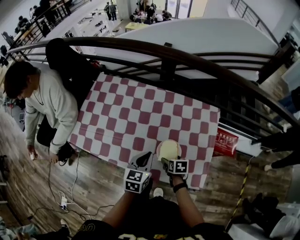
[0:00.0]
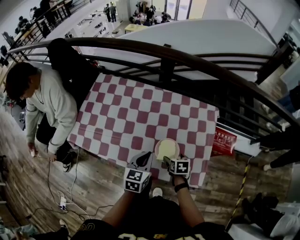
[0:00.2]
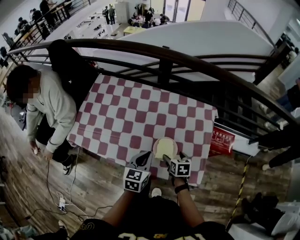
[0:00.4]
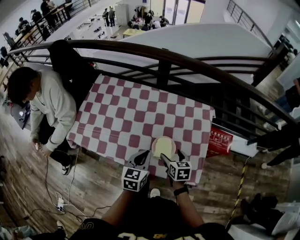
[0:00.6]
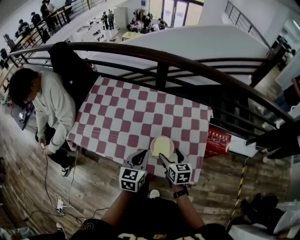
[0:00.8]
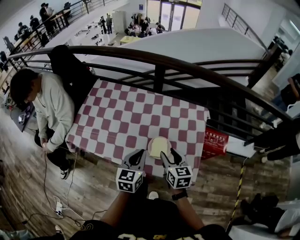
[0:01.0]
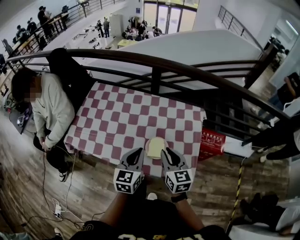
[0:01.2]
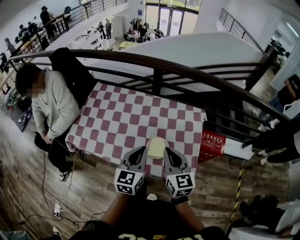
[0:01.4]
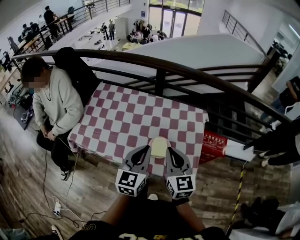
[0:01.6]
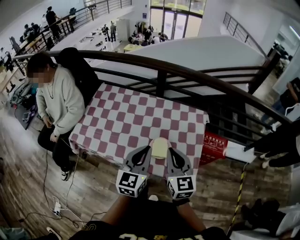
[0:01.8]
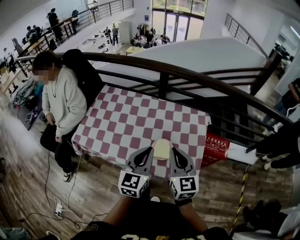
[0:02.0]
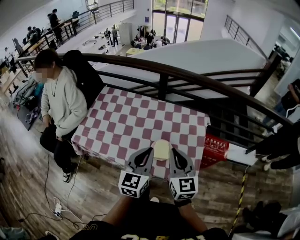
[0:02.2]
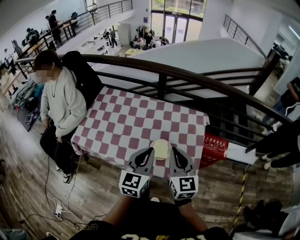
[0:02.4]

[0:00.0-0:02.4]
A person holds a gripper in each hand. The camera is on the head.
0:00.0 to 0:01.2: The left gripper shifts about 10 cm upward, while the right gripper goes roughly 25 cm upward, angles its fingers upward, by roughly 40 degrees, and closes up.
0:01.2 to 0:02.4: The two grippers go about 10 cm upward.

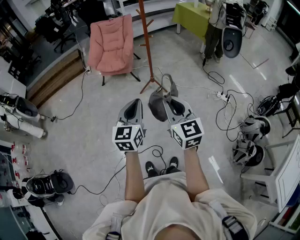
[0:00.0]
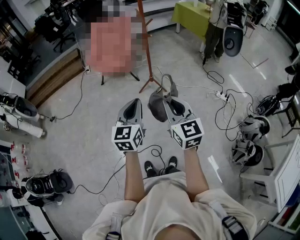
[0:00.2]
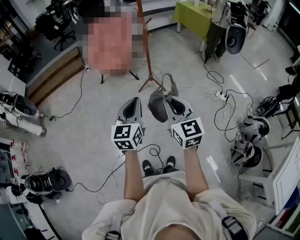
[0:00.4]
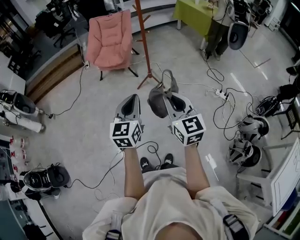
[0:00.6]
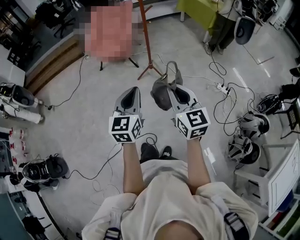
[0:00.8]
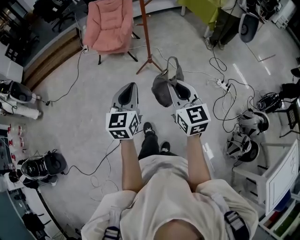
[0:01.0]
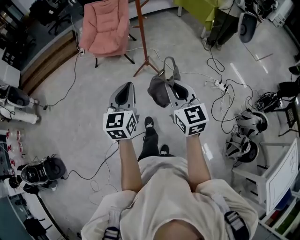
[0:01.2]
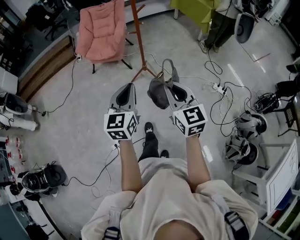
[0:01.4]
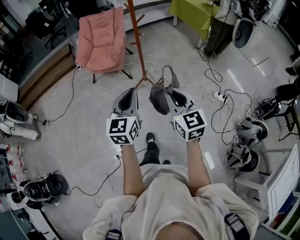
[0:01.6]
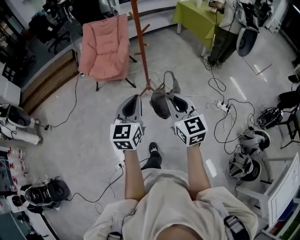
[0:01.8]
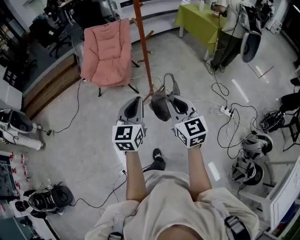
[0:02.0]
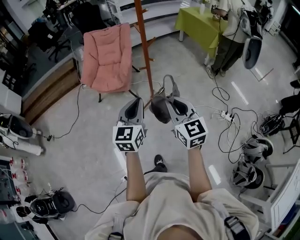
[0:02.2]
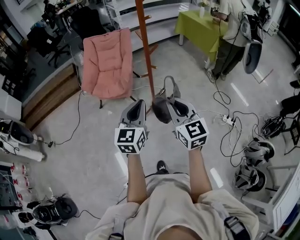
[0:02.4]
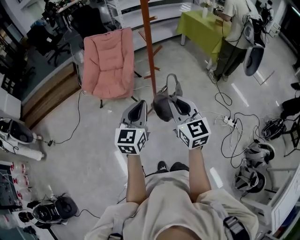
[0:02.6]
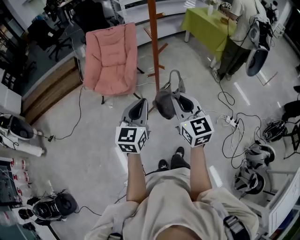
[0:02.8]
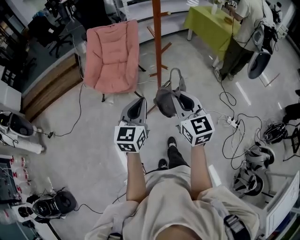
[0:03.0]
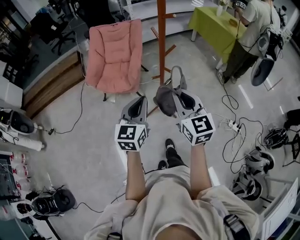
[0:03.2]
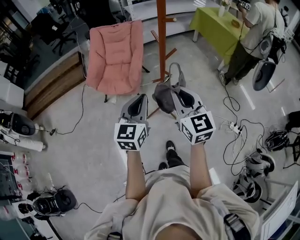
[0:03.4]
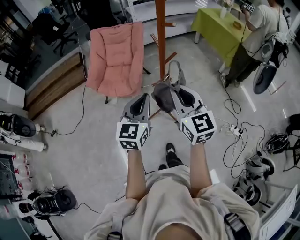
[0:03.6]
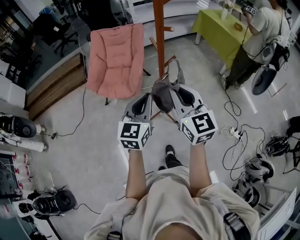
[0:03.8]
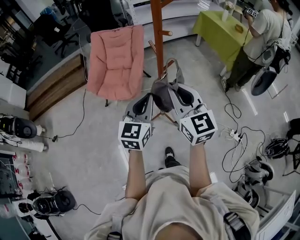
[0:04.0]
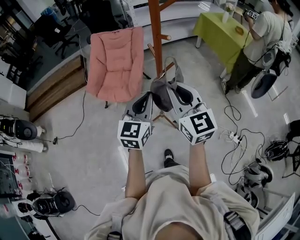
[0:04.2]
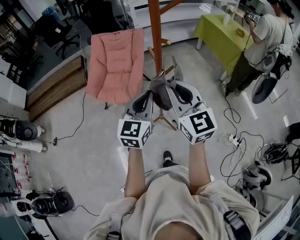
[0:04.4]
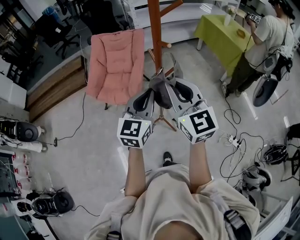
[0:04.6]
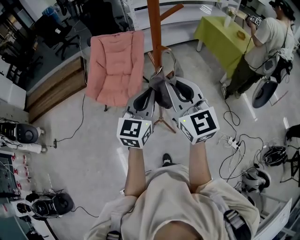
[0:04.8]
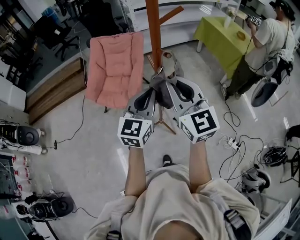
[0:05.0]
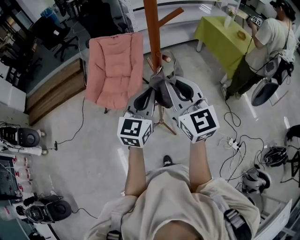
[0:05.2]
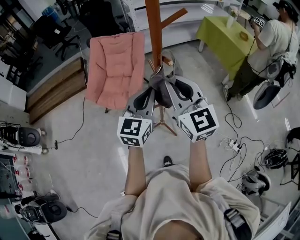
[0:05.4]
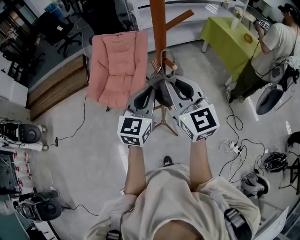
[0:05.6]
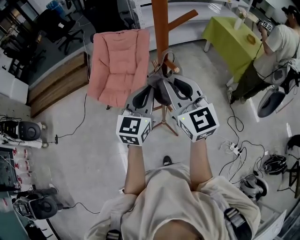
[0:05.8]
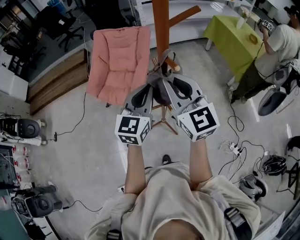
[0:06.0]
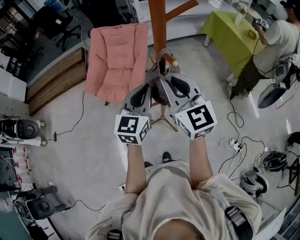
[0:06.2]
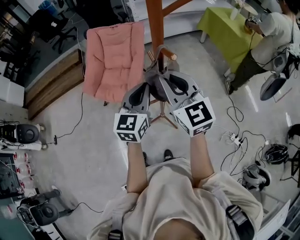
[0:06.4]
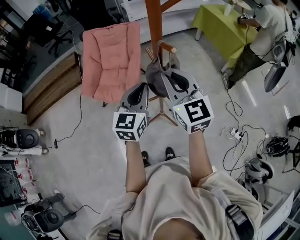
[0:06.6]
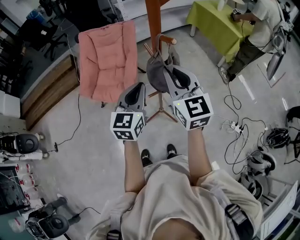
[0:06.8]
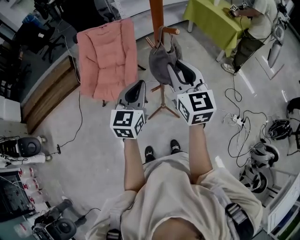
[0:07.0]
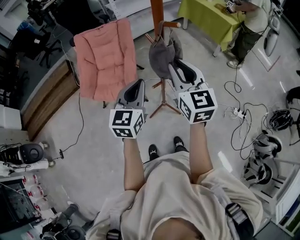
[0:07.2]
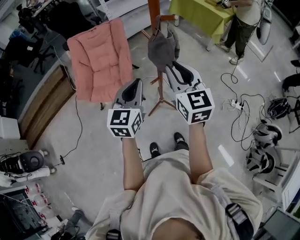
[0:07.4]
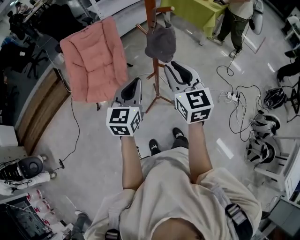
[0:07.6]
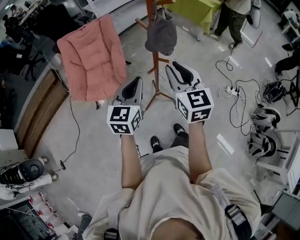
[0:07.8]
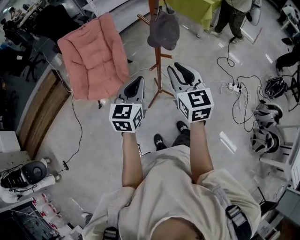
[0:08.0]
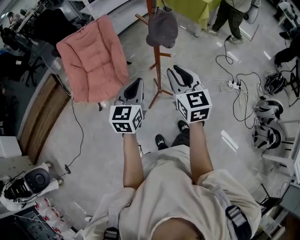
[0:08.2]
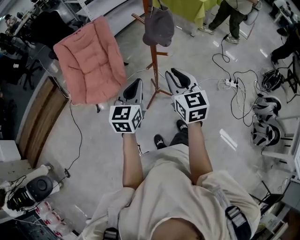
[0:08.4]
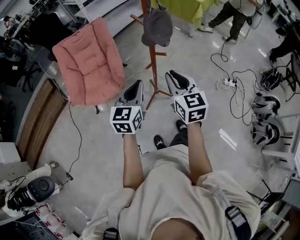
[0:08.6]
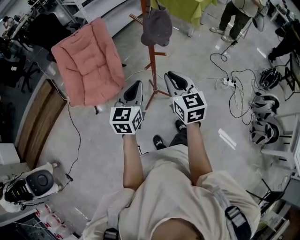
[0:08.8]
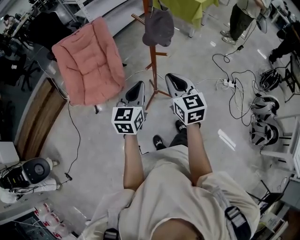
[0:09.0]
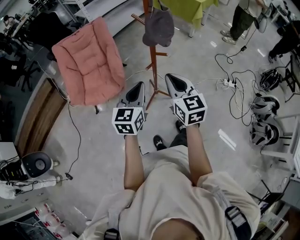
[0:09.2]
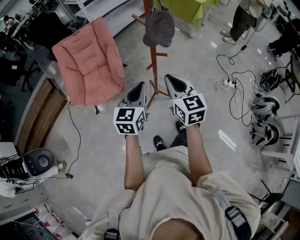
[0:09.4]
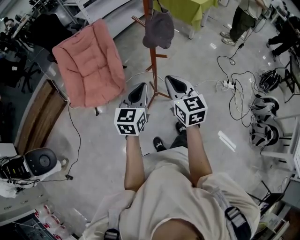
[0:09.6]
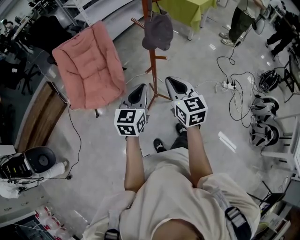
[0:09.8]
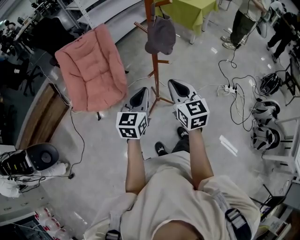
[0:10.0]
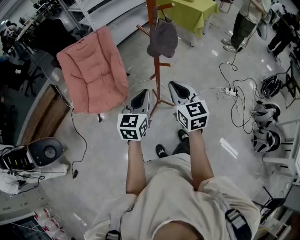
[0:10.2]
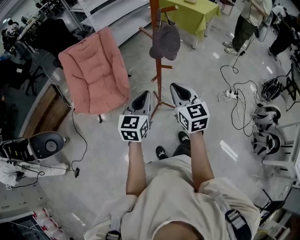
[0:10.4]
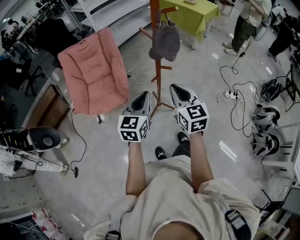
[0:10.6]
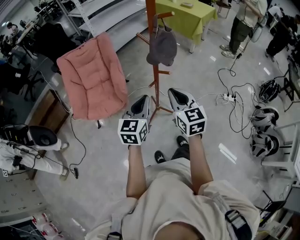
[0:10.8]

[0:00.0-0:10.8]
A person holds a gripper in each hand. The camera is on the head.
0:00.0 to 0:01.6: Both grippers move forward and to the right, roughly 15 cm.
0:01.6 to 0:03.0: The two grippers go about 20 cm forward.
0:03.0 to 0:04.6: The right gripper travels forward and upward by roughly 20 cm, while the left gripper moves forward, to the right and upward, about 15 cm.
0:04.6 to 0:06.2: Both grippers move forward, roughly 10 cm.
0:06.2 to 0:07.8: The left gripper moves about 15 cm, and turns by approximately 20 degrees, while the right gripper changes place by some 15 cm, and turns by roughly 40 degrees.
0:07.8 to 0:09.2: The left gripper moves about 5 cm, while the right gripper heads downward, covering some 5 cm.
0:09.2 to 0:10.8: The grippers move only a little.

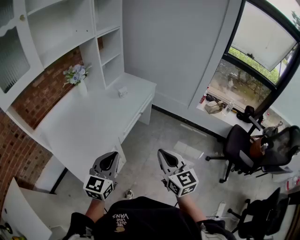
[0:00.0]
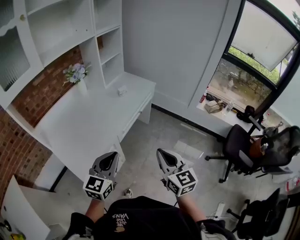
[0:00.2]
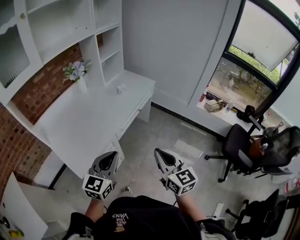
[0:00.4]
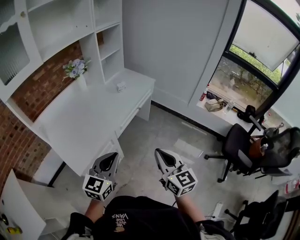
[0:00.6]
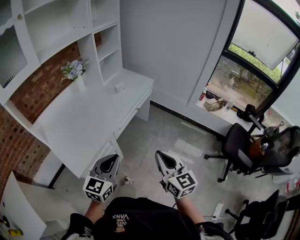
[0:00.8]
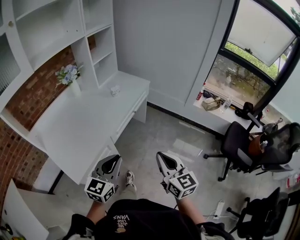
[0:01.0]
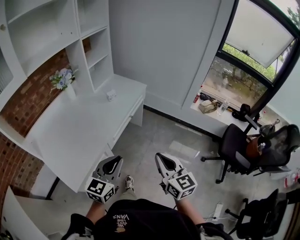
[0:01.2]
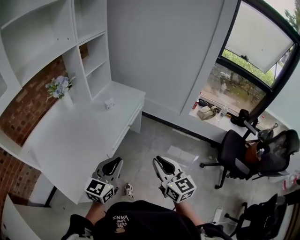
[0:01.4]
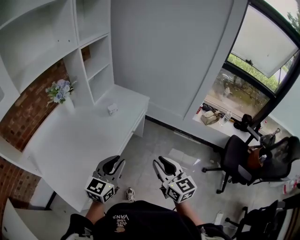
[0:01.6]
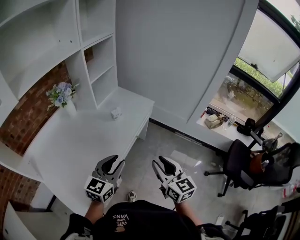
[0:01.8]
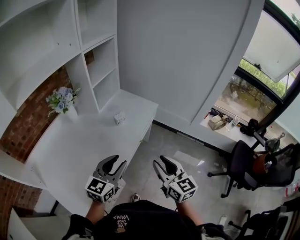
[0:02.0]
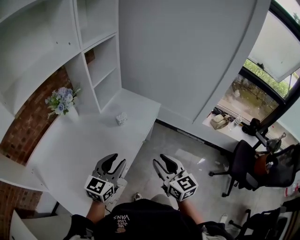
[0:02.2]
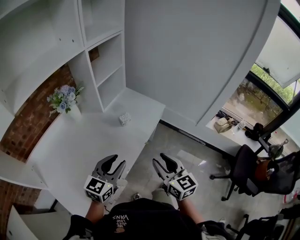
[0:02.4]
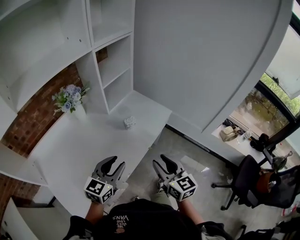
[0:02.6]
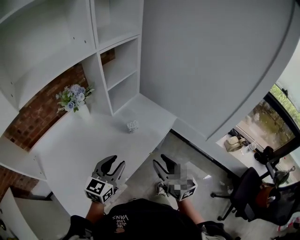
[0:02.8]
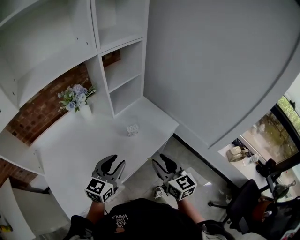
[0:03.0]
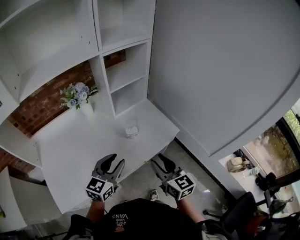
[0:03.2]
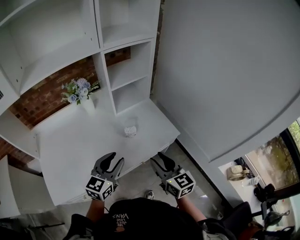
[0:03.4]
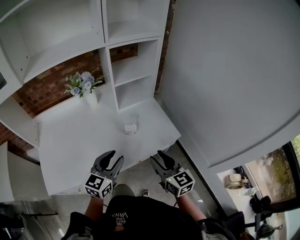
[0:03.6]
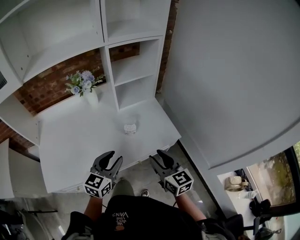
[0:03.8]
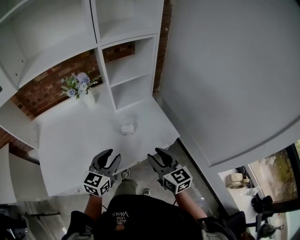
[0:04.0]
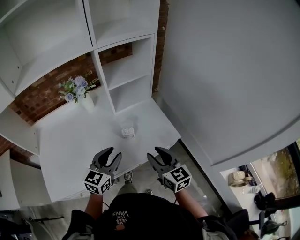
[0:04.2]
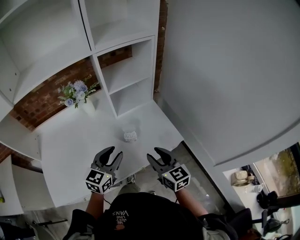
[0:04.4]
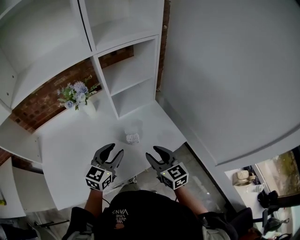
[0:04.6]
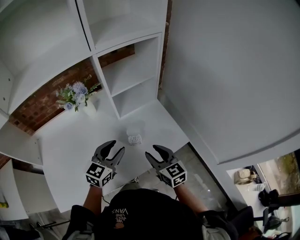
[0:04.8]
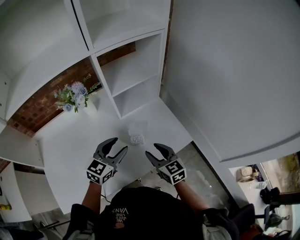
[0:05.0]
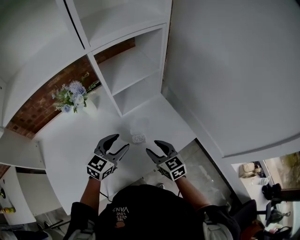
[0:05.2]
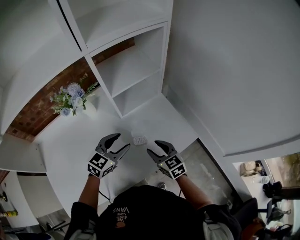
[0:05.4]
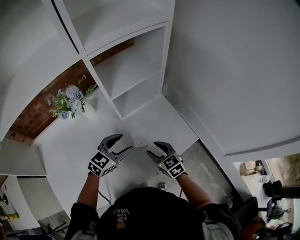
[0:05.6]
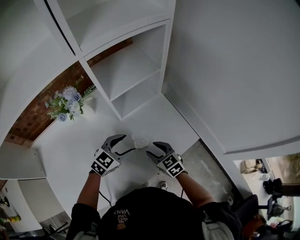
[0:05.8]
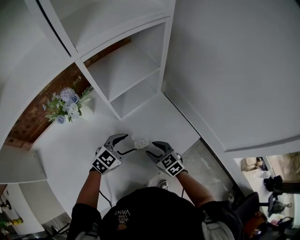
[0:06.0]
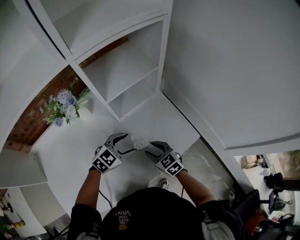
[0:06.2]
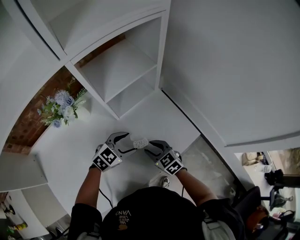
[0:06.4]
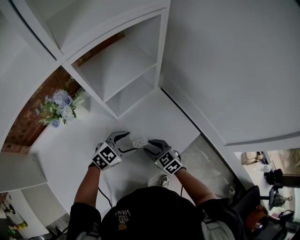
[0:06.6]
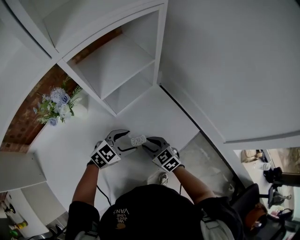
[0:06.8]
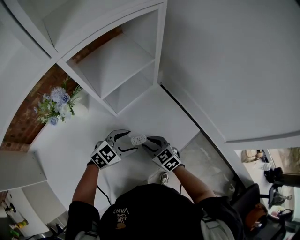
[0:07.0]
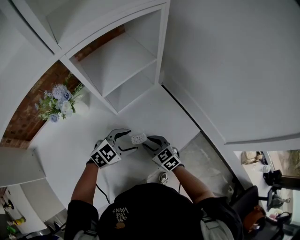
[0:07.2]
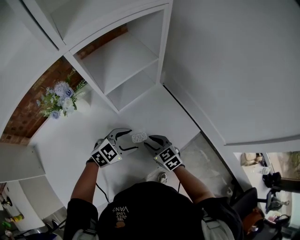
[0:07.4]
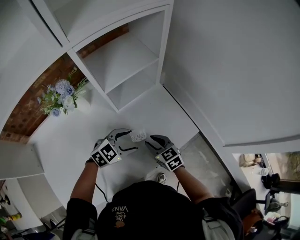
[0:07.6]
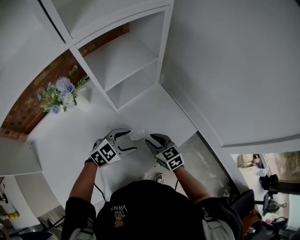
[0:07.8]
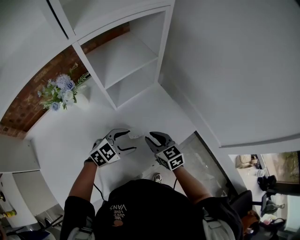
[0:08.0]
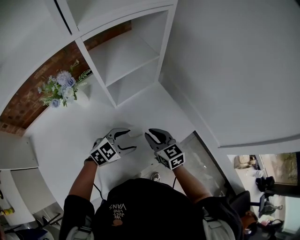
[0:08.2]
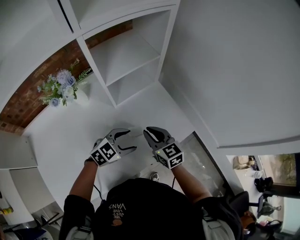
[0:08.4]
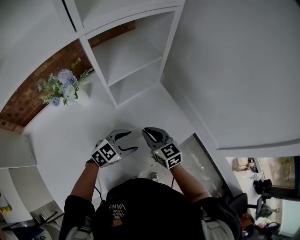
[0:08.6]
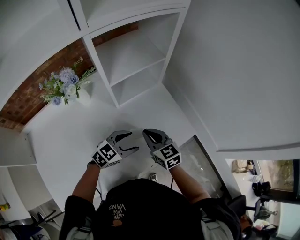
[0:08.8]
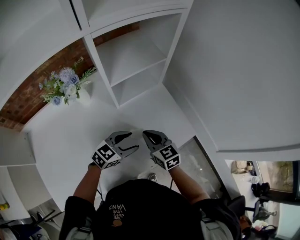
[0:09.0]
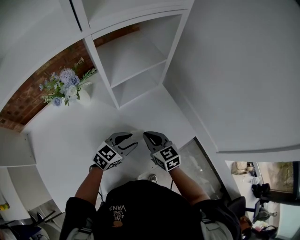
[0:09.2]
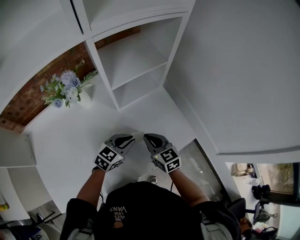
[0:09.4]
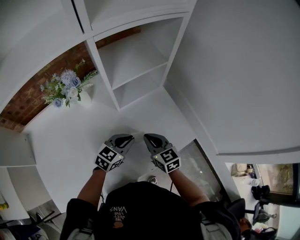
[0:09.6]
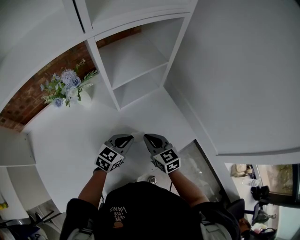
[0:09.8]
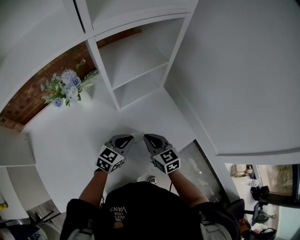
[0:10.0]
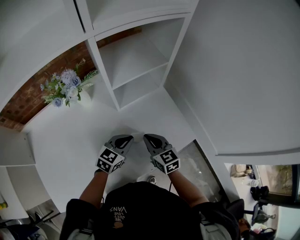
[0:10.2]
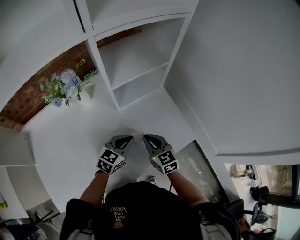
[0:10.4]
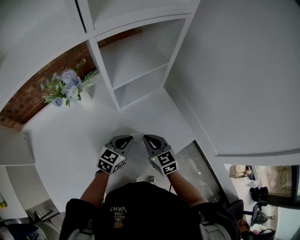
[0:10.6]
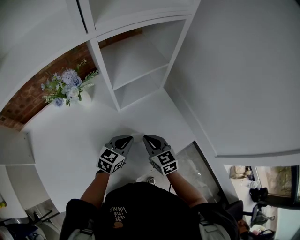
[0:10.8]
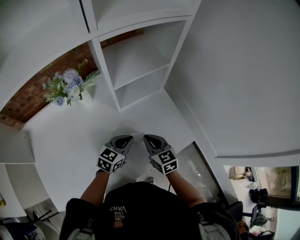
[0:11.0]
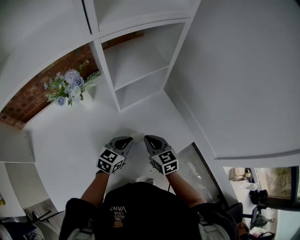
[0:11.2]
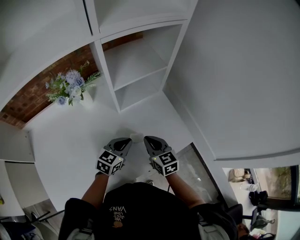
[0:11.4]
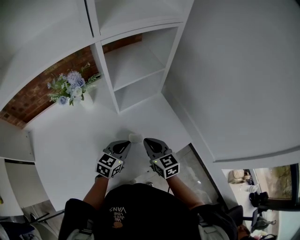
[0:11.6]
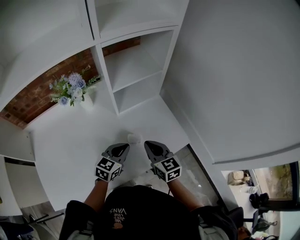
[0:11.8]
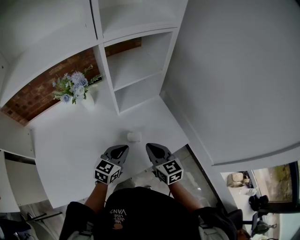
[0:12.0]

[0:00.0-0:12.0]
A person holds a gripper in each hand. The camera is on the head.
0:00.0 to 0:01.6: Both grippers move forward, roughly 15 cm.
0:01.6 to 0:03.0: The grippers both shift forward by some 25 cm. The right gripper rotates roughly 20 degrees. The left gripper turns by about 20 degrees.
0:03.0 to 0:04.4: The two grippers go some 10 cm forward and to the right.
0:04.4 to 0:06.0: The left gripper goes approximately 20 cm forward and downward, changes its angle by approximately 40 degrees, and opens its fingers, while the right gripper is displaced downward, forward and to the left by roughly 20 cm, and changes its angle by about 20 degrees.
0:06.0 to 0:07.6: The grippers stay close to where they were, moving slightly.
0:07.6 to 0:09.0: The left gripper turns by about 20 degrees. Meanwhile the right gripper travels upward by about 5 cm, and closes up.
0:09.0 to 0:10.4: The left gripper closes its fingers.
0:10.4 to 0:12.0: The left gripper shifts roughly 5 cm backward. The right gripper is displaced upward and backward by about 10 cm.
